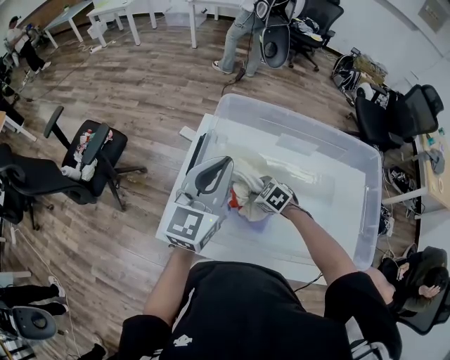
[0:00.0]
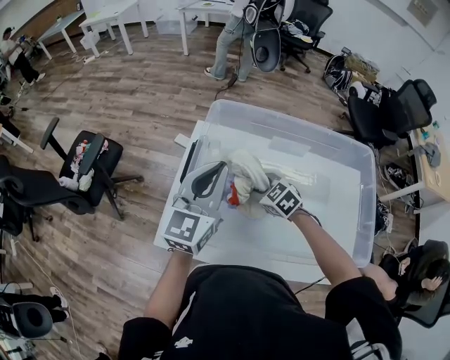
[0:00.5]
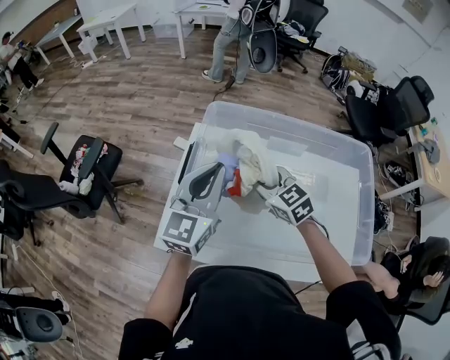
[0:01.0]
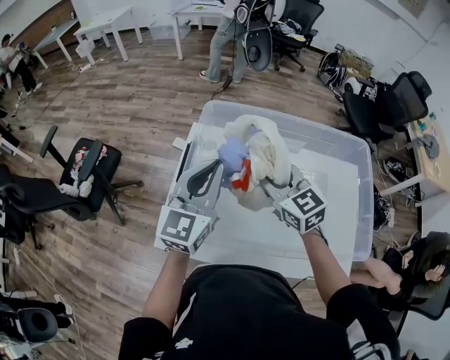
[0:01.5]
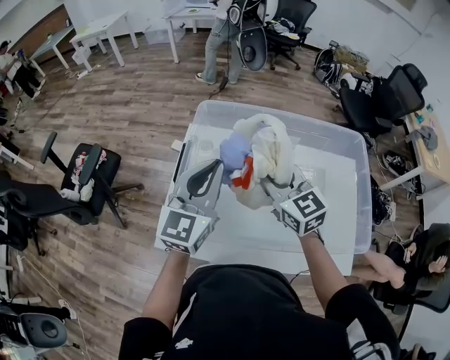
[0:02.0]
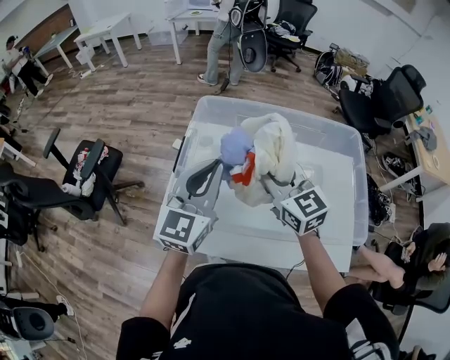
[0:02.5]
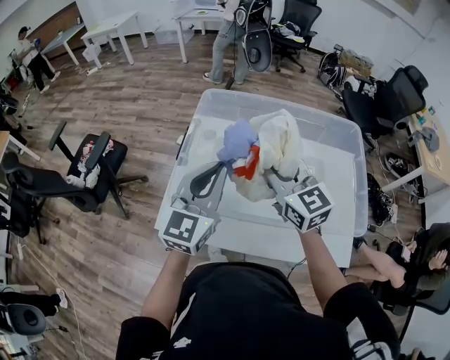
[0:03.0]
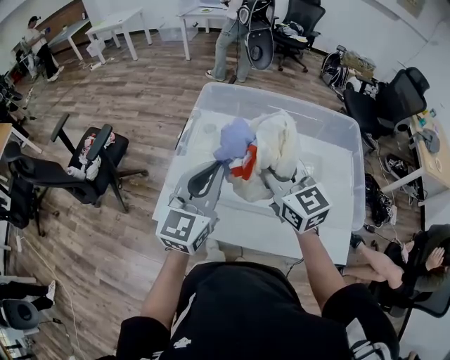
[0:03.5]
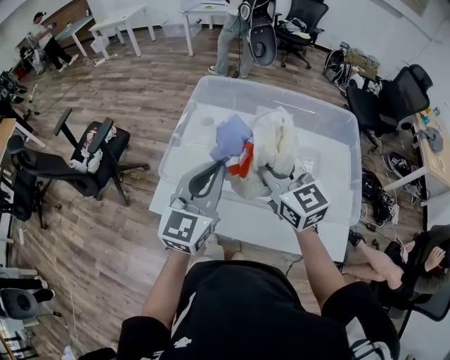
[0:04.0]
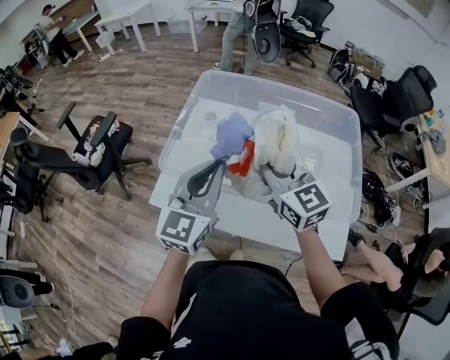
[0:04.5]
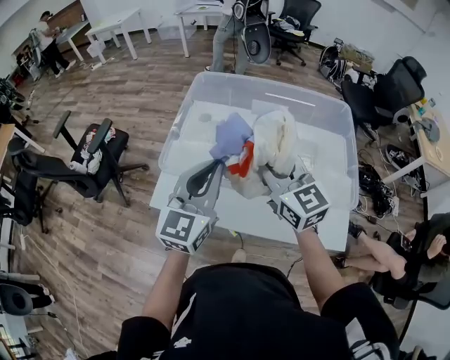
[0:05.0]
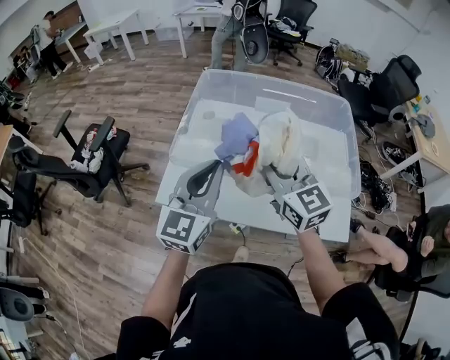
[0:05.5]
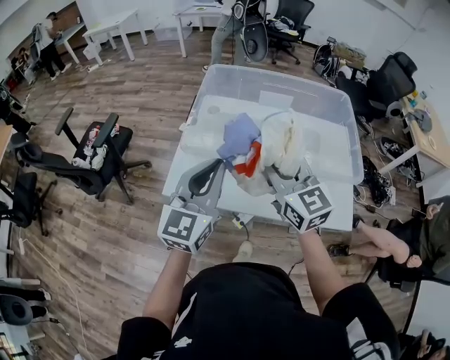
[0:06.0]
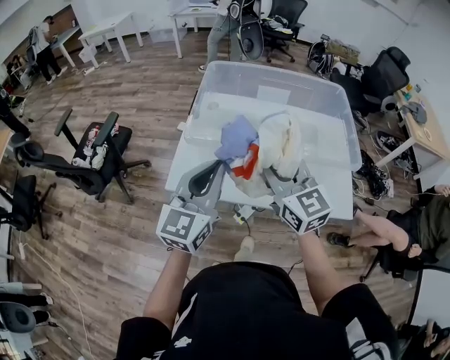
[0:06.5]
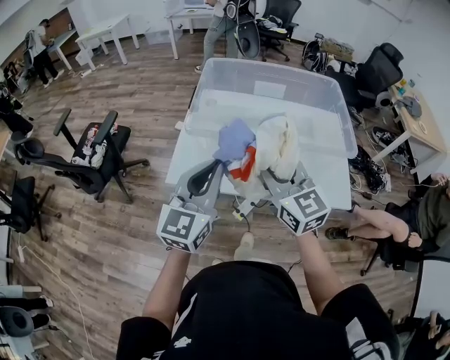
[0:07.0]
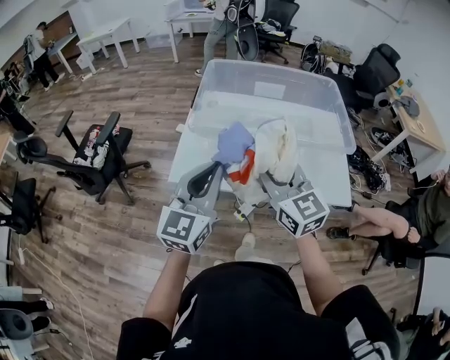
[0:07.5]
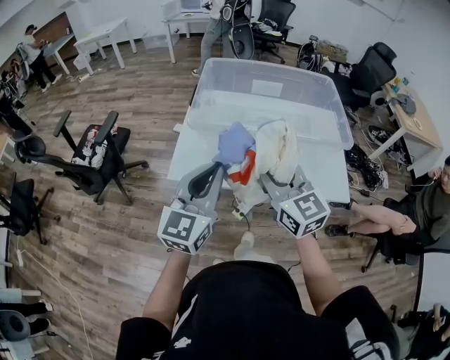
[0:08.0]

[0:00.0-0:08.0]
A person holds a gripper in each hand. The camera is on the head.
0:00.0 to 0:02.0: The right gripper shifts approximately 30 cm upward, and points its fingers about 50 degrees further upward.
0:02.0 to 0:04.0: The grippers both shift backward by roughly 10 cm.
0:04.0 to 0:06.0: The right gripper shifts about 10 cm backward, while the left gripper moves backward and to the left, about 10 cm.
0:06.0 to 0:08.0: Both grippers travel together backward, approximately 10 cm.

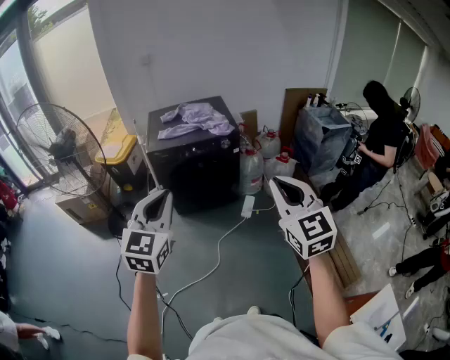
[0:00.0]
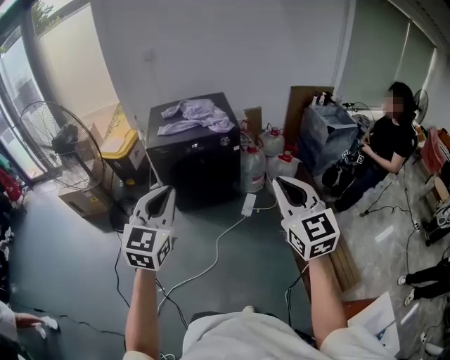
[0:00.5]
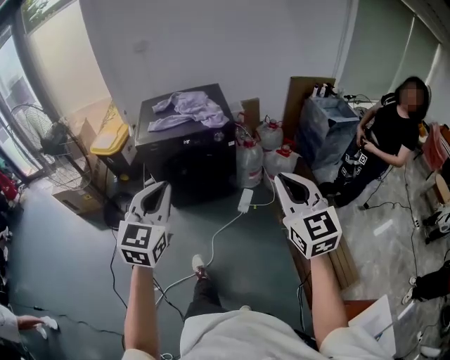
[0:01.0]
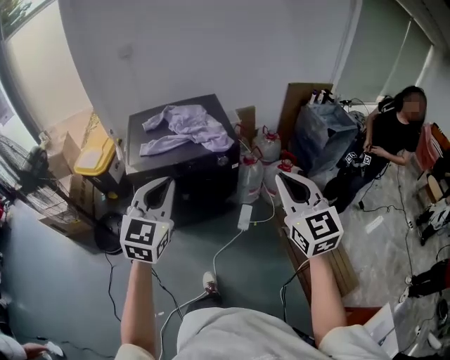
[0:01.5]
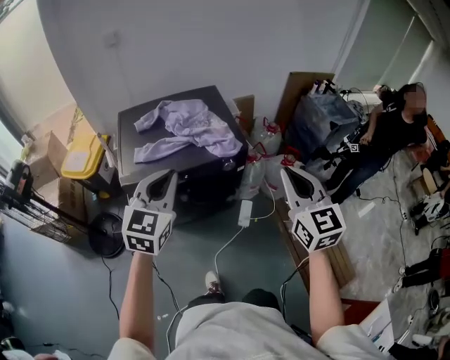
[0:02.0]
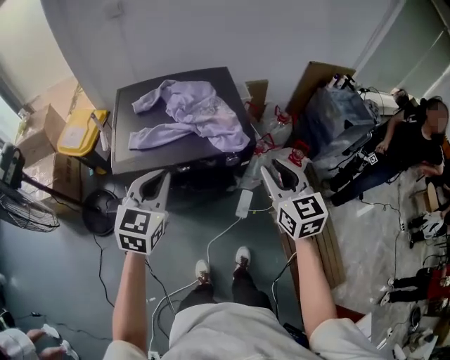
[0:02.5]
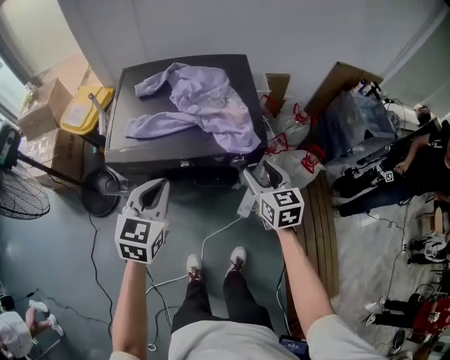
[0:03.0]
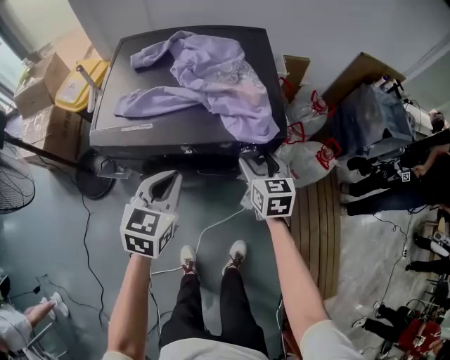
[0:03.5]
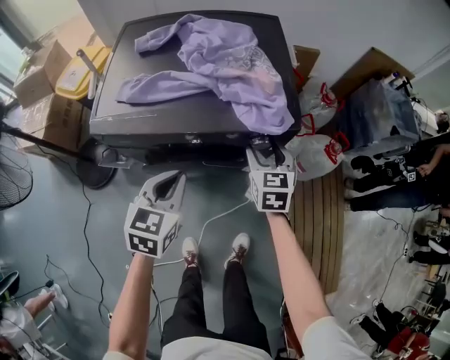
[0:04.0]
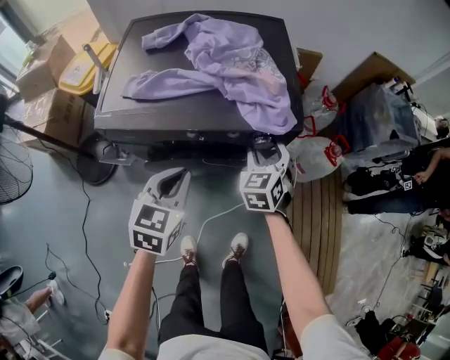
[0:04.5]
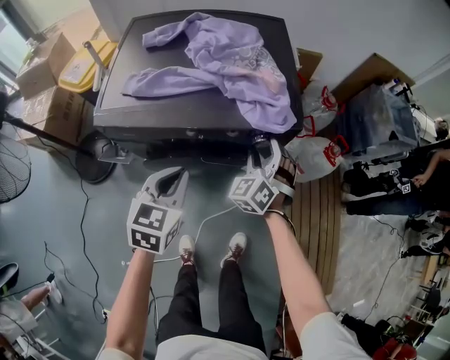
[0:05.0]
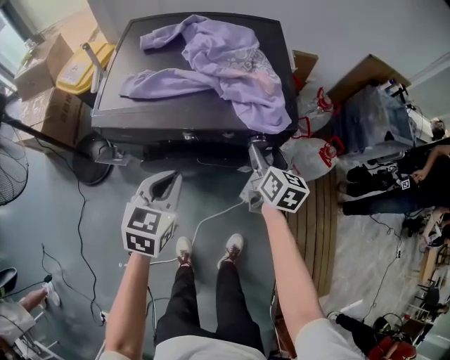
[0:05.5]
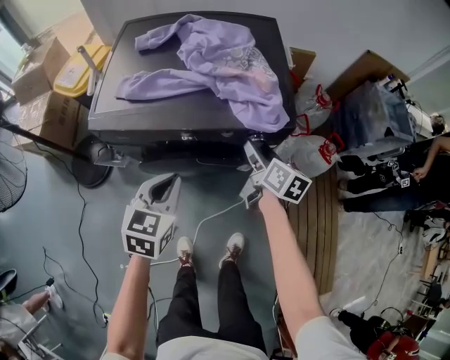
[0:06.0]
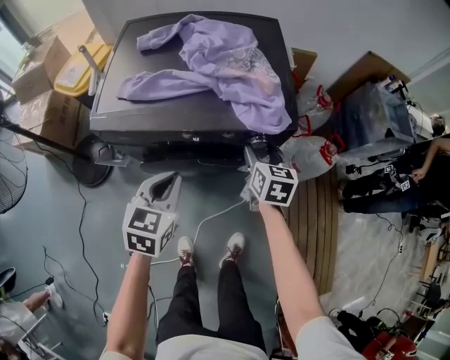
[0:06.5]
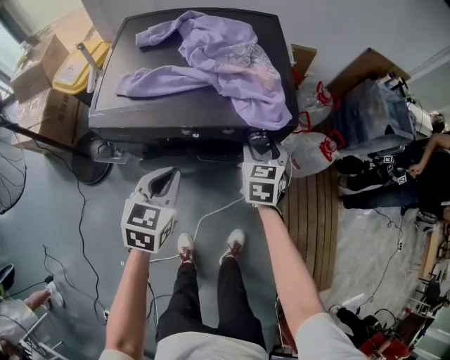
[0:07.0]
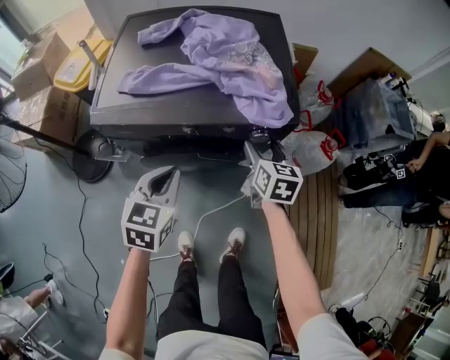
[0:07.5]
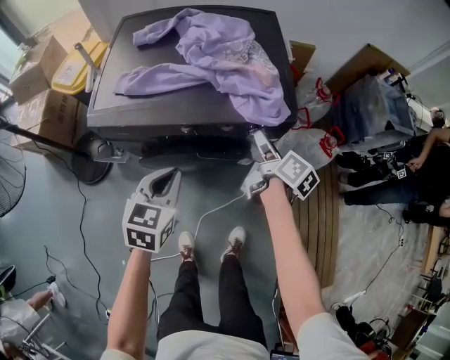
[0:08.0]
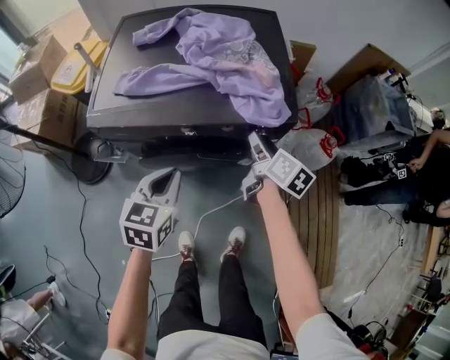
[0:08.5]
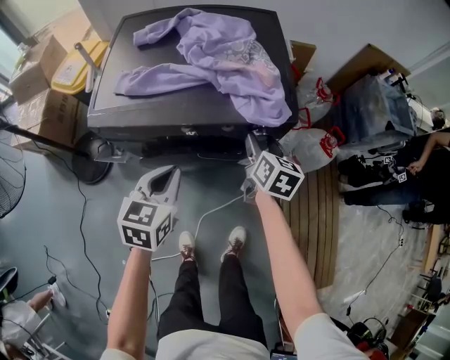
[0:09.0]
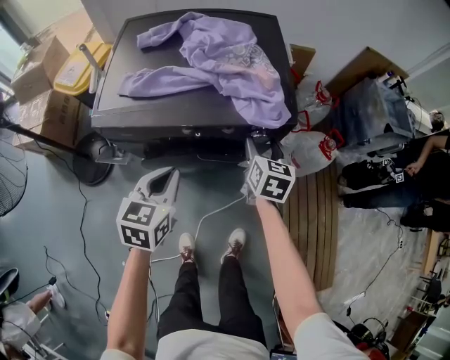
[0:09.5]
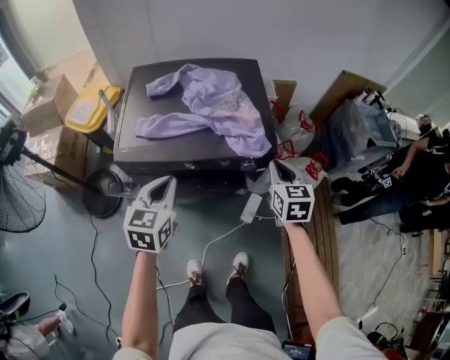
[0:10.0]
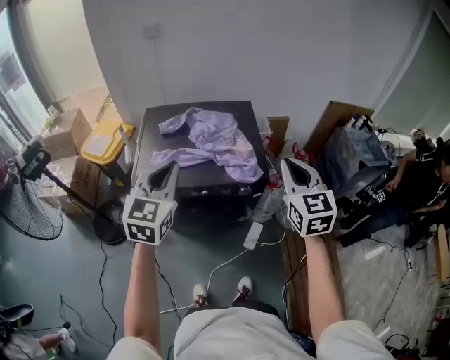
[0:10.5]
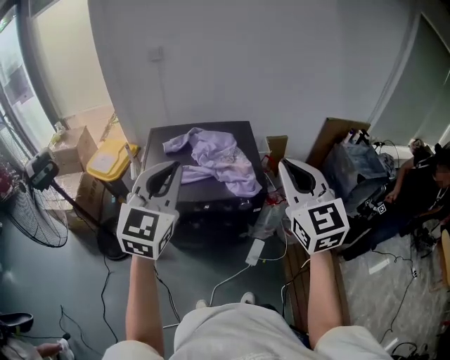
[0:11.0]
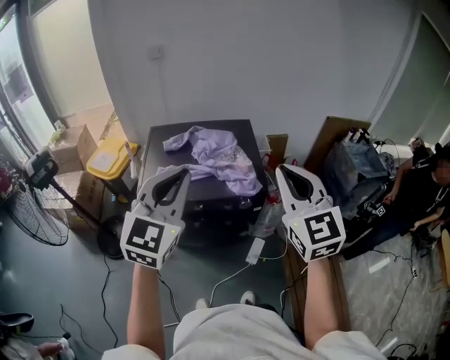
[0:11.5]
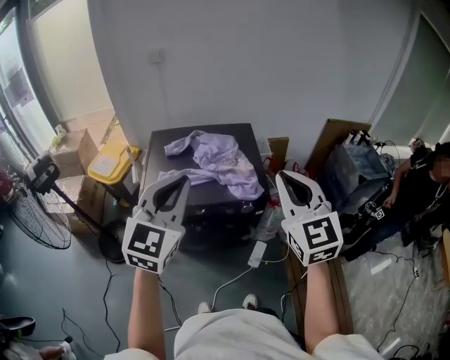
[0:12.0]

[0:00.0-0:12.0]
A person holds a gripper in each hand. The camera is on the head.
0:00.0 to 0:02.0: Both grippers move forward, some 40 cm.
0:02.0 to 0:04.0: The right gripper is displaced downward and forward by about 40 cm, swivels approximately 20 degrees, and opens up. Meanwhile the left gripper travels downward by roughly 25 cm, and swivels approximately 30 degrees.
0:04.0 to 0:06.0: The right gripper rotates around the line of its fingers by approximately 40 degrees, clockwise from behind.
0:06.0 to 0:08.0: The right gripper rotates roughly 20 degrees.
0:08.0 to 0:10.0: The two grippers go approximately 15 cm upward. The right gripper rotates around the line of its fingers by roughly 60 degrees, counterclockwise from behind, and closes its fingers.
0:10.0 to 0:12.0: Both grippers travel together upward, about 30 cm. The right gripper changes its angle by roughly 30 degrees. Meanwhile the left gripper changes its angle by some 30 degrees.

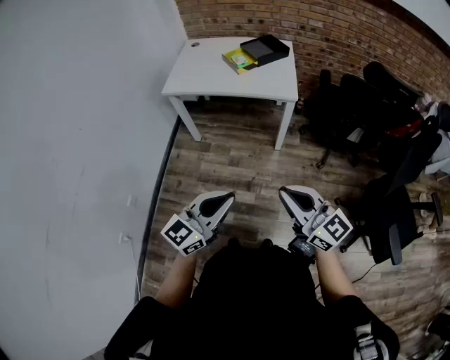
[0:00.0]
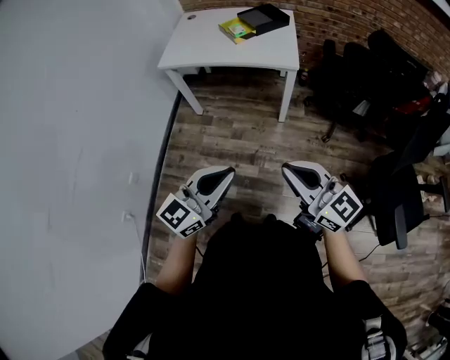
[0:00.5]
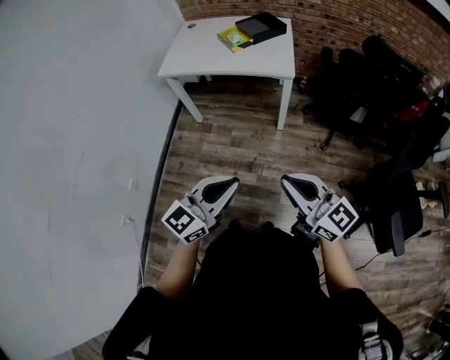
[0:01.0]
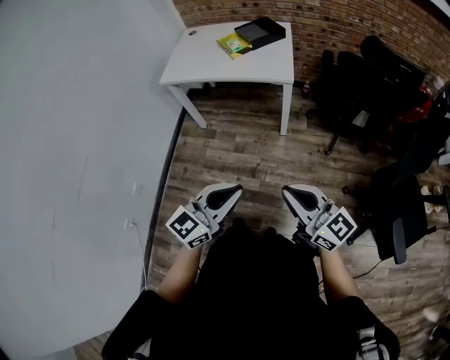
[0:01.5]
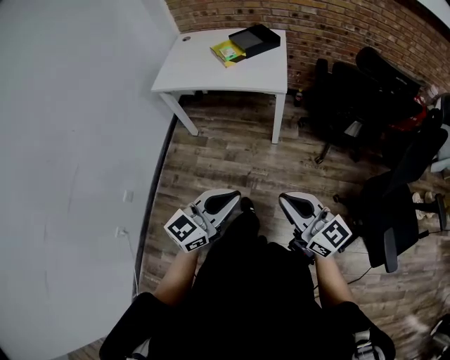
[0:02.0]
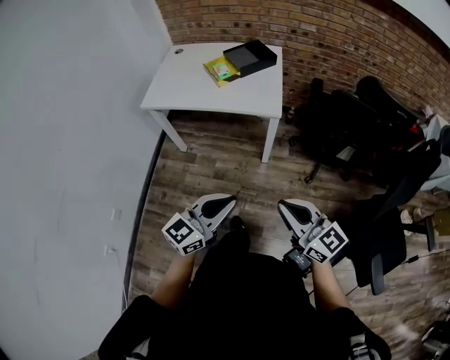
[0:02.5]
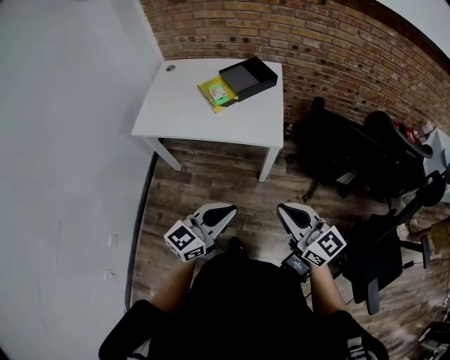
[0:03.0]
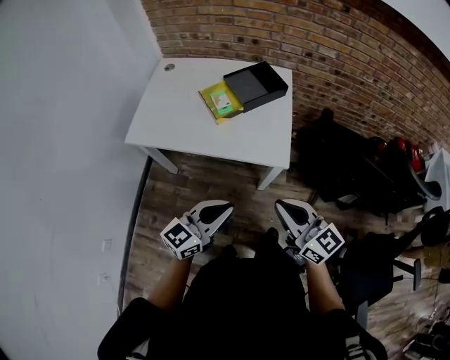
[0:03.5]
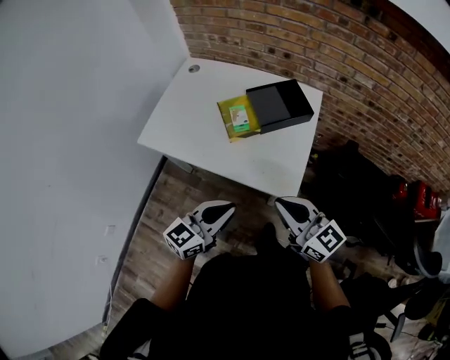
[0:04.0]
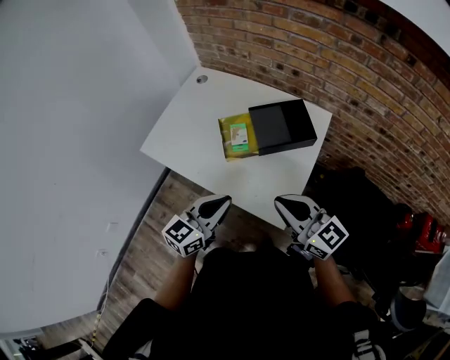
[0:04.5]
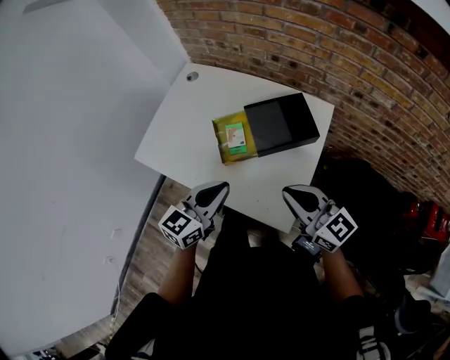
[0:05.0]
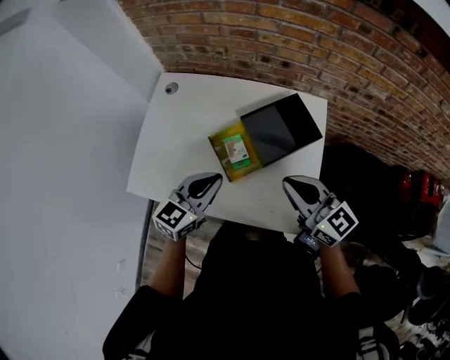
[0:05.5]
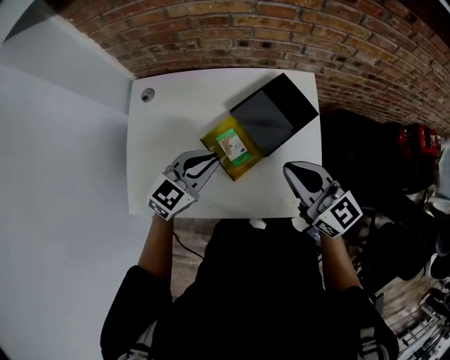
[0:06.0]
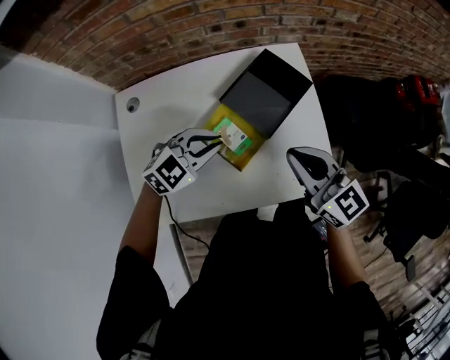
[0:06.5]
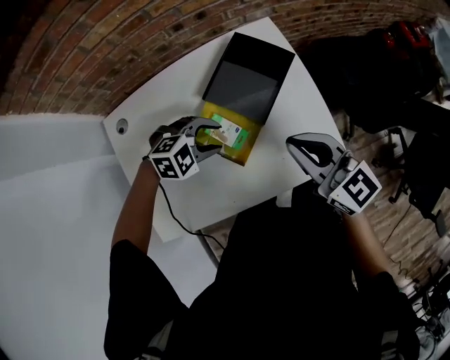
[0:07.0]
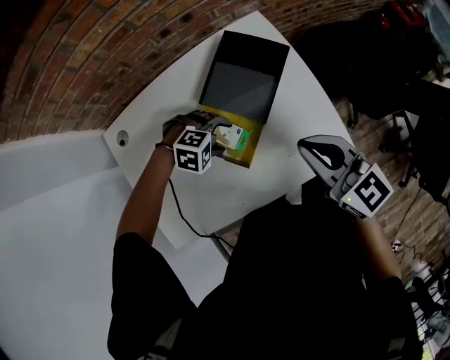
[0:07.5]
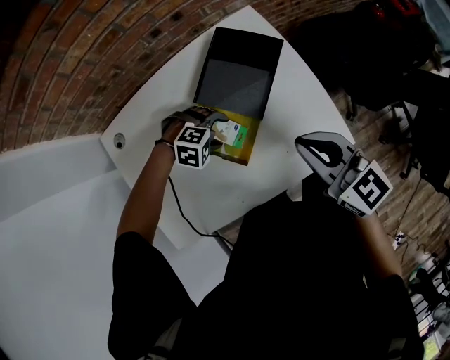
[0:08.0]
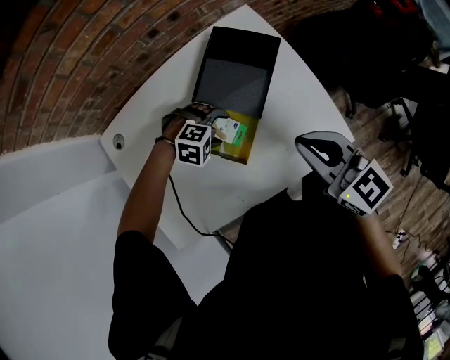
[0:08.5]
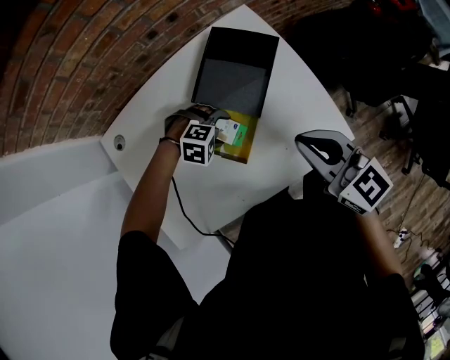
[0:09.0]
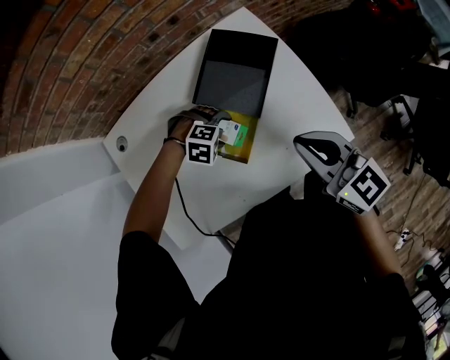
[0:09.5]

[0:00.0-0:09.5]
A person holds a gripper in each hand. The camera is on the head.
0:00.0 to 0:02.0: The grippers both shift to the right by roughly 10 cm.
0:02.0 to 0:04.0: Both grippers are carried forward, about 50 cm.
0:04.0 to 0:05.5: The grippers both shift forward by approximately 30 cm.
0:05.5 to 0:07.5: The left gripper is displaced downward by some 20 cm, points its fingers some 50 degrees further downward, and opens, while the right gripper moves downward, approximately 5 cm, and rotates roughly 30 degrees.
0:07.5 to 0:09.5: There are only small adjustments of the grippers.
